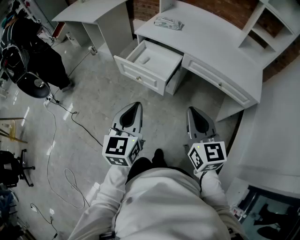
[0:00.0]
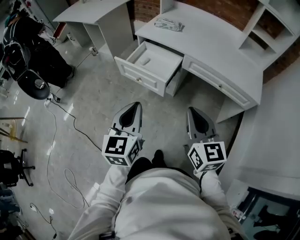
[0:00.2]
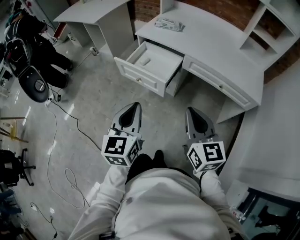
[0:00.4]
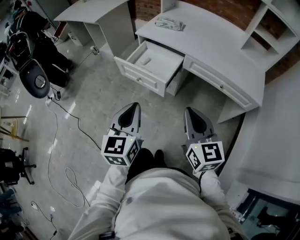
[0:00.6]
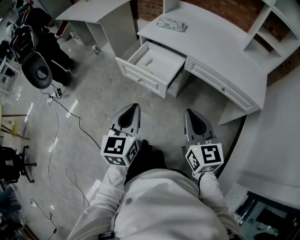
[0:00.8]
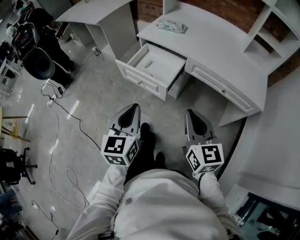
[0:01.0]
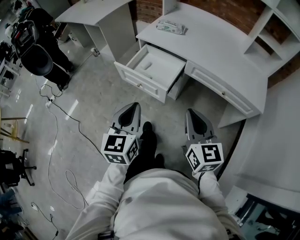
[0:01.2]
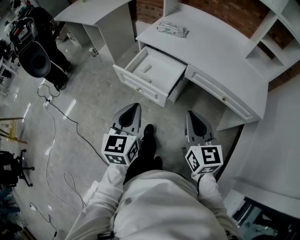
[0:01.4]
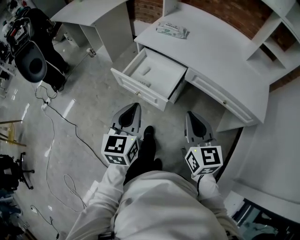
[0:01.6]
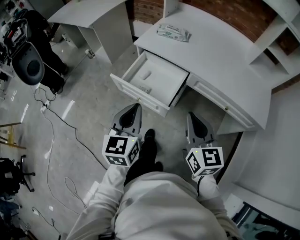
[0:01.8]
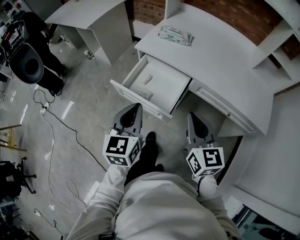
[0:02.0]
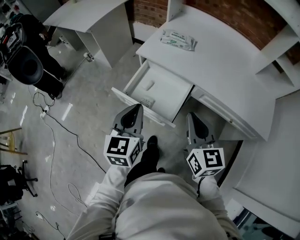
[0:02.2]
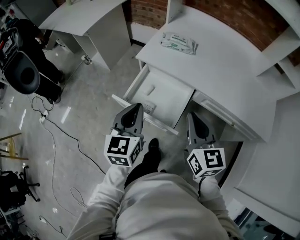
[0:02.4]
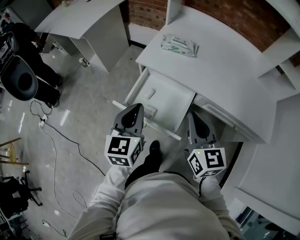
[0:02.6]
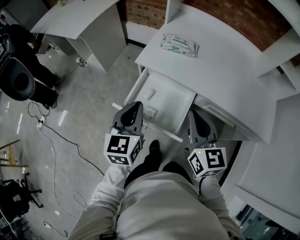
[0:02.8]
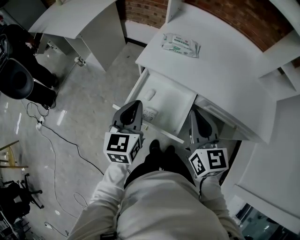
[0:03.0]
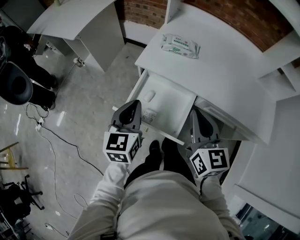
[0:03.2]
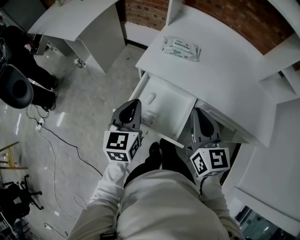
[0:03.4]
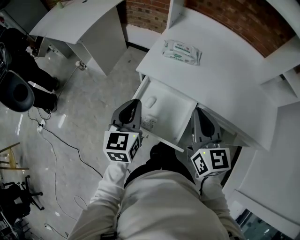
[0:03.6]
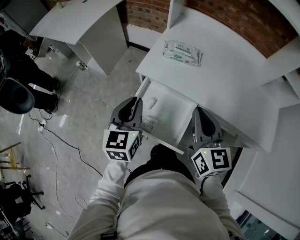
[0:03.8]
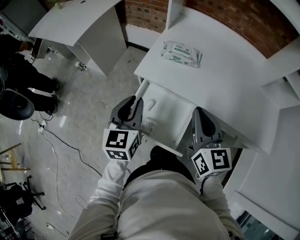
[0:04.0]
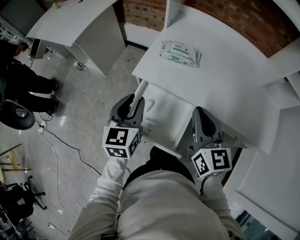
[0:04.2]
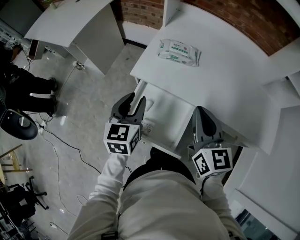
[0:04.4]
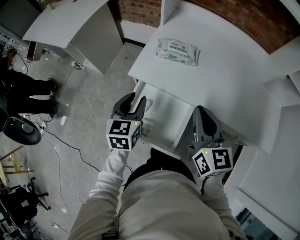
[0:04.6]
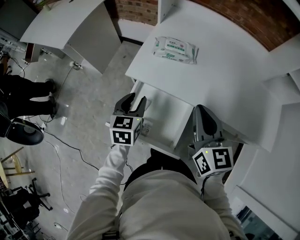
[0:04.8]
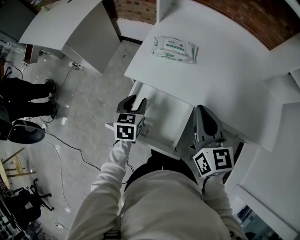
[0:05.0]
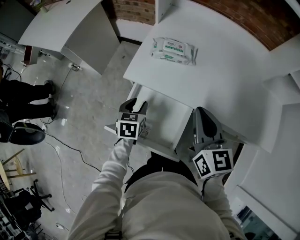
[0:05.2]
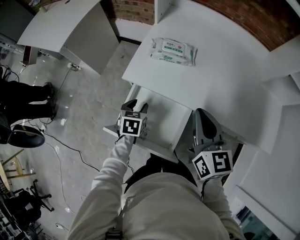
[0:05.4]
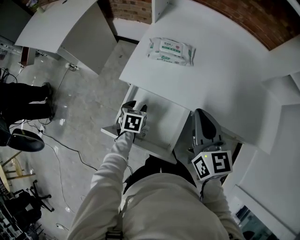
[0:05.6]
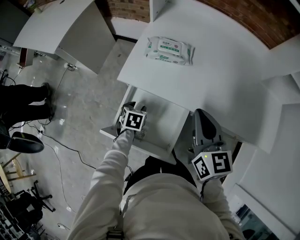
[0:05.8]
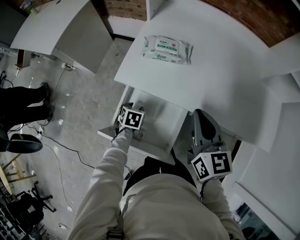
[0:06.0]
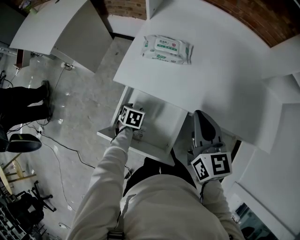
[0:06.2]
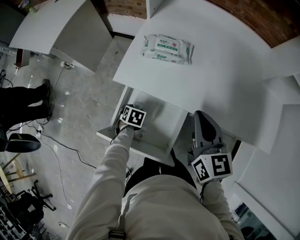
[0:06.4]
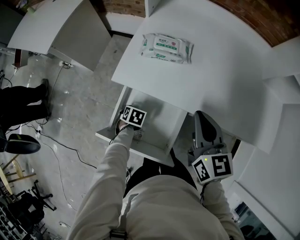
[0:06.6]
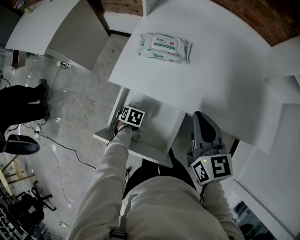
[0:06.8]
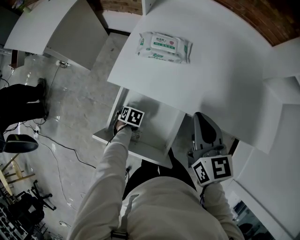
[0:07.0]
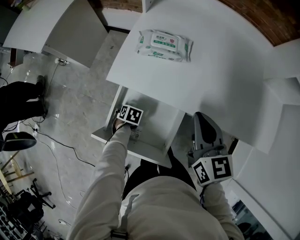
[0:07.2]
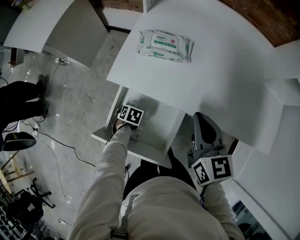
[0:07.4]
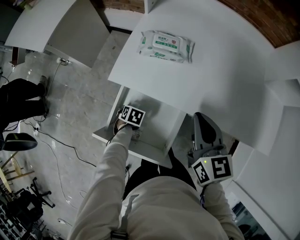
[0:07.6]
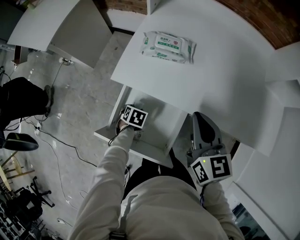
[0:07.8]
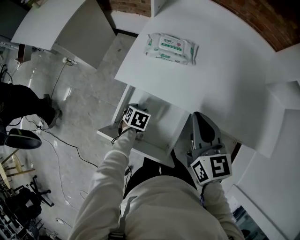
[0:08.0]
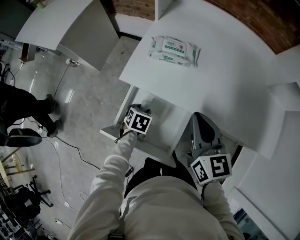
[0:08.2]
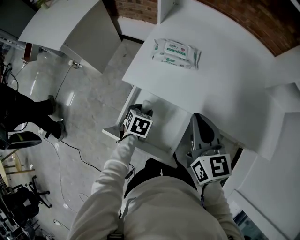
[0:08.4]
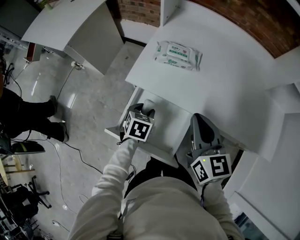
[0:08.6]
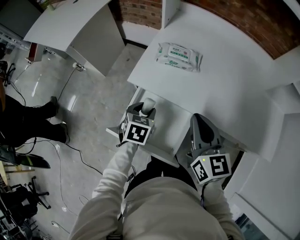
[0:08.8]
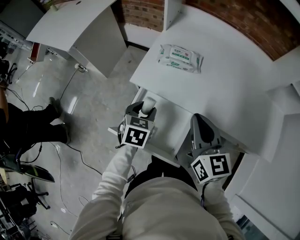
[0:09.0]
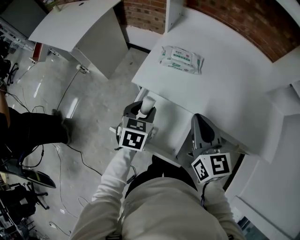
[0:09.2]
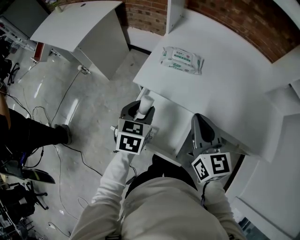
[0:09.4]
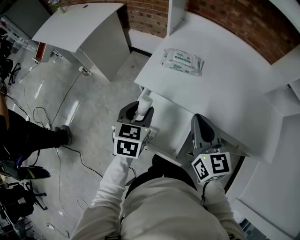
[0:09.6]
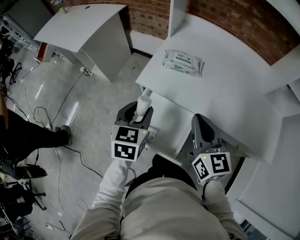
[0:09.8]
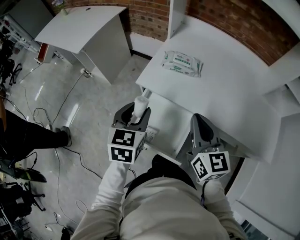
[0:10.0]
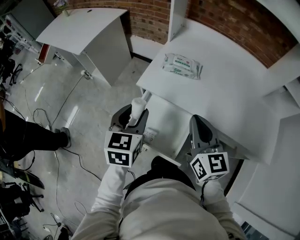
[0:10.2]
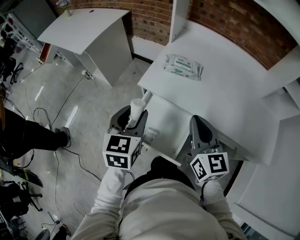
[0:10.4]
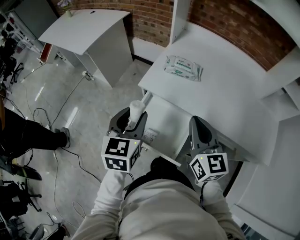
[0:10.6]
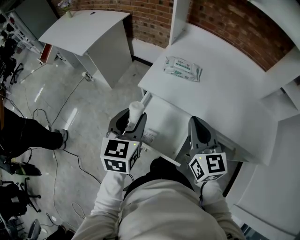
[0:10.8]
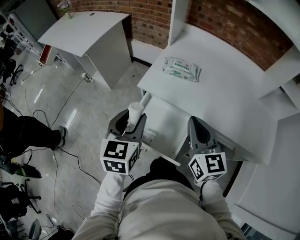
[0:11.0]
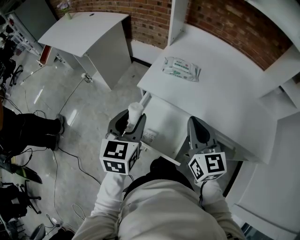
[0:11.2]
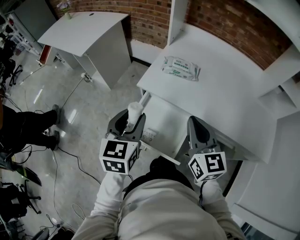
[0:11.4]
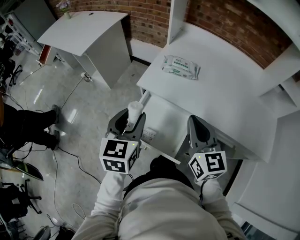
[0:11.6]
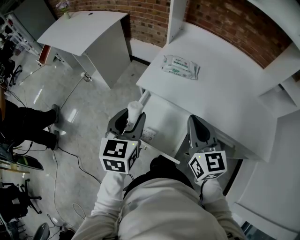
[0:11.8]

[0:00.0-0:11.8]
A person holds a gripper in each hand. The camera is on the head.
0:00.0 to 0:01.4: The grippers both shift forward by roughly 10 cm.
0:01.4 to 0:03.0: Both grippers travel together forward, approximately 30 cm.
0:03.0 to 0:04.4: The grippers both shift forward by approximately 10 cm. The left gripper opens.
0:04.4 to 0:06.0: The left gripper goes approximately 25 cm downward, and tilts its fingers about 40 degrees downward, while the right gripper shifts by about 5 cm.
0:06.0 to 0:07.4: The left gripper moves downward, some 10 cm.
0:07.4 to 0:08.8: The right gripper shifts by approximately 5 cm. The left gripper moves upward, about 25 cm, and angles its fingers upward, by some 30 degrees.
0:08.8 to 0:10.4: The left gripper shifts approximately 20 cm upward, and rotates roughly 30 degrees. The right gripper shifts by approximately 5 cm.
0:10.4 to 0:11.8: There are only small adjustments of the grippers.

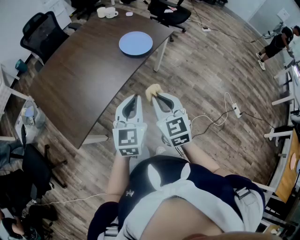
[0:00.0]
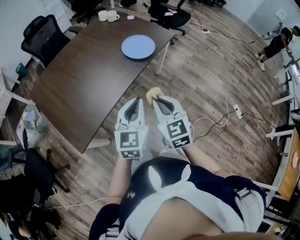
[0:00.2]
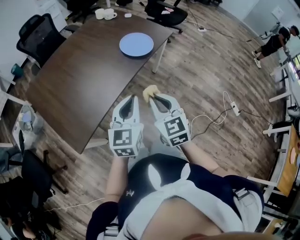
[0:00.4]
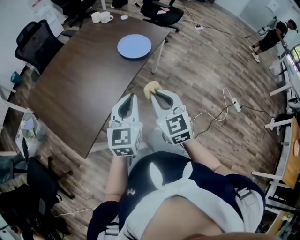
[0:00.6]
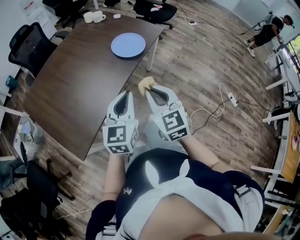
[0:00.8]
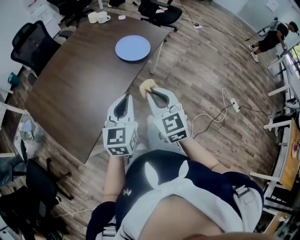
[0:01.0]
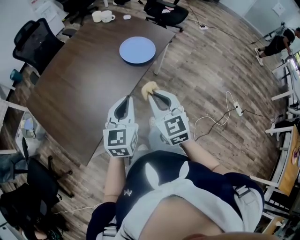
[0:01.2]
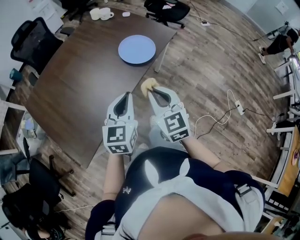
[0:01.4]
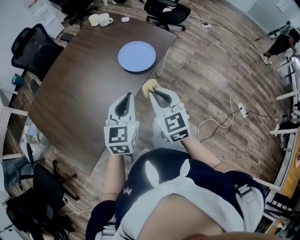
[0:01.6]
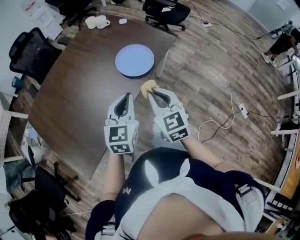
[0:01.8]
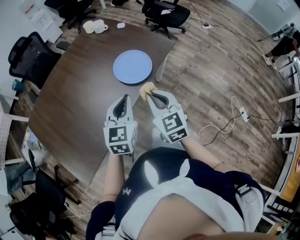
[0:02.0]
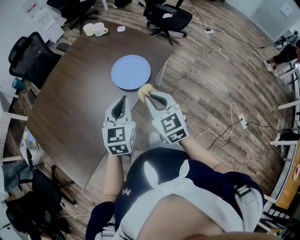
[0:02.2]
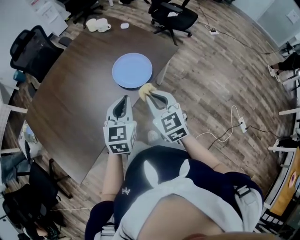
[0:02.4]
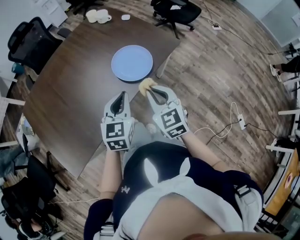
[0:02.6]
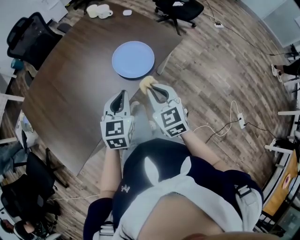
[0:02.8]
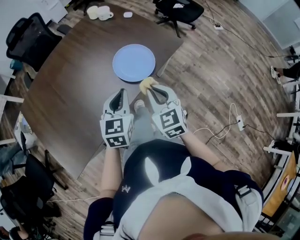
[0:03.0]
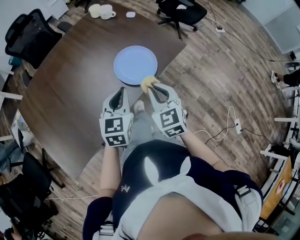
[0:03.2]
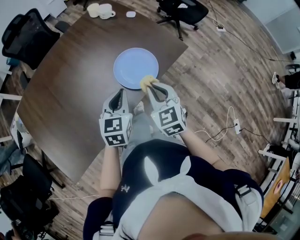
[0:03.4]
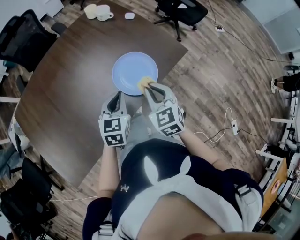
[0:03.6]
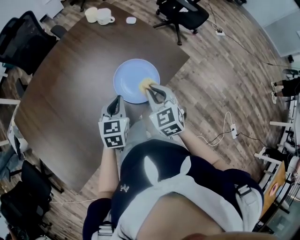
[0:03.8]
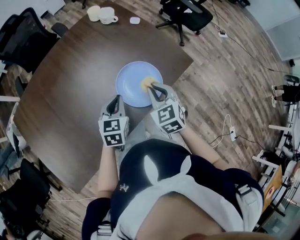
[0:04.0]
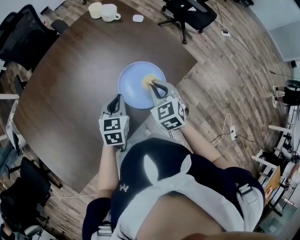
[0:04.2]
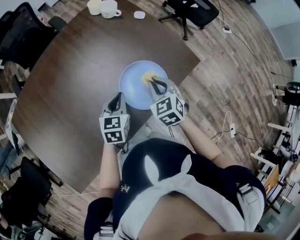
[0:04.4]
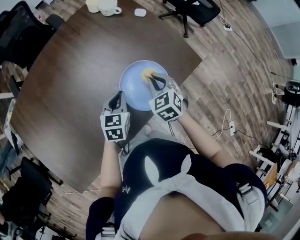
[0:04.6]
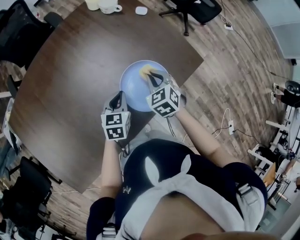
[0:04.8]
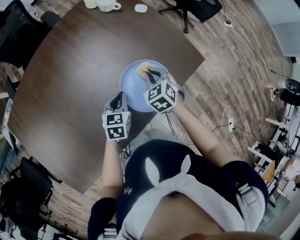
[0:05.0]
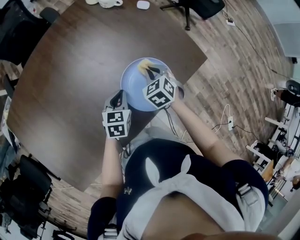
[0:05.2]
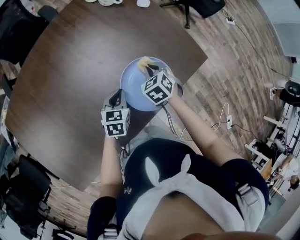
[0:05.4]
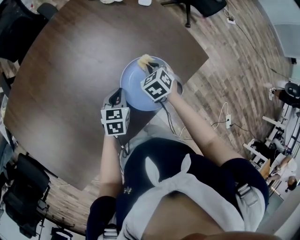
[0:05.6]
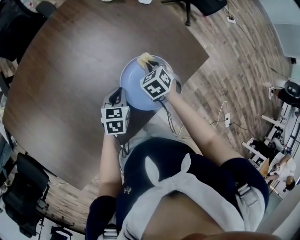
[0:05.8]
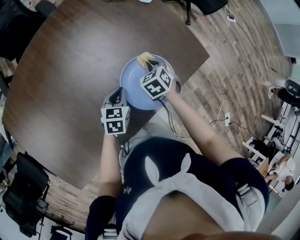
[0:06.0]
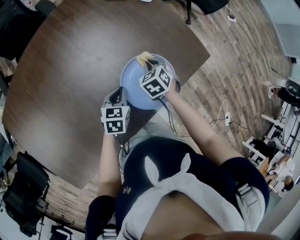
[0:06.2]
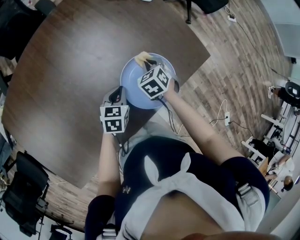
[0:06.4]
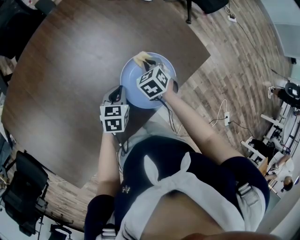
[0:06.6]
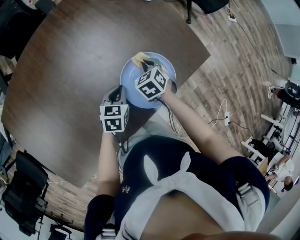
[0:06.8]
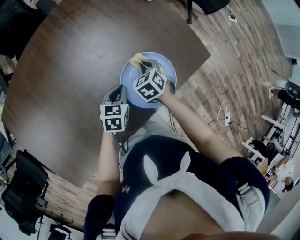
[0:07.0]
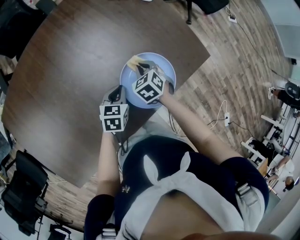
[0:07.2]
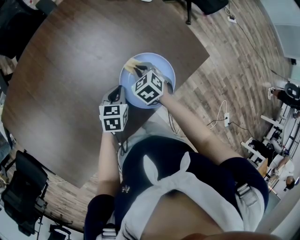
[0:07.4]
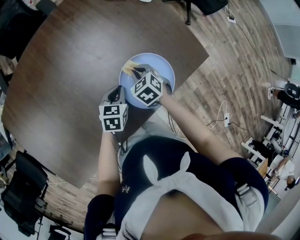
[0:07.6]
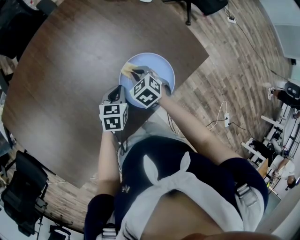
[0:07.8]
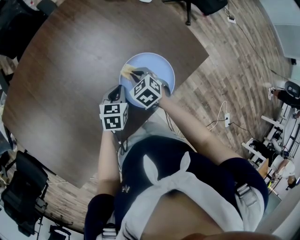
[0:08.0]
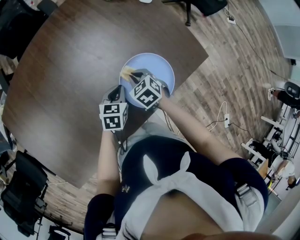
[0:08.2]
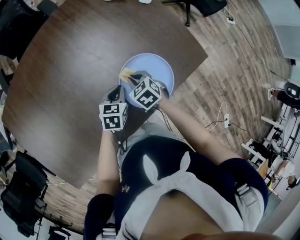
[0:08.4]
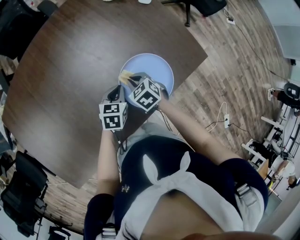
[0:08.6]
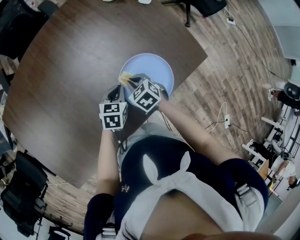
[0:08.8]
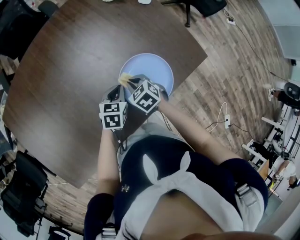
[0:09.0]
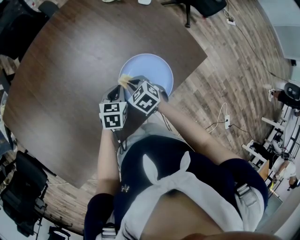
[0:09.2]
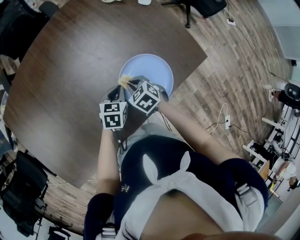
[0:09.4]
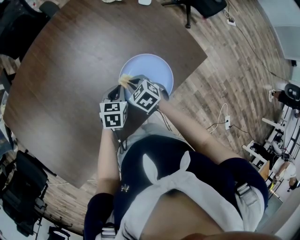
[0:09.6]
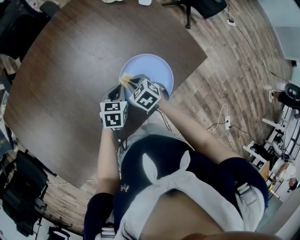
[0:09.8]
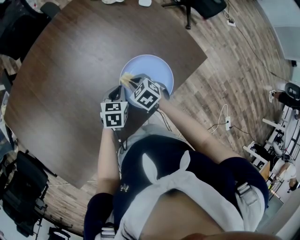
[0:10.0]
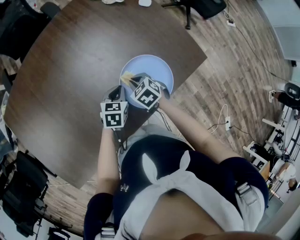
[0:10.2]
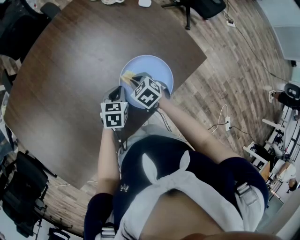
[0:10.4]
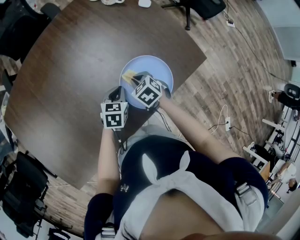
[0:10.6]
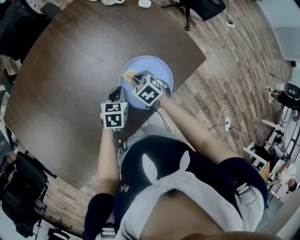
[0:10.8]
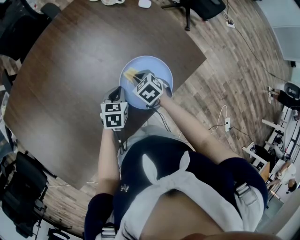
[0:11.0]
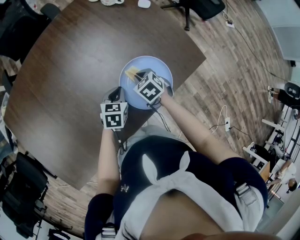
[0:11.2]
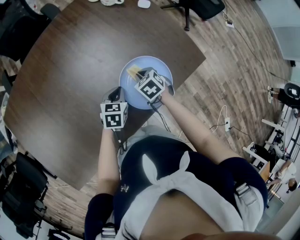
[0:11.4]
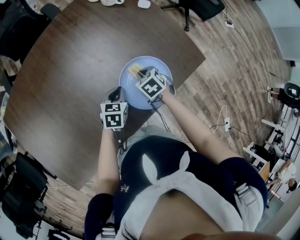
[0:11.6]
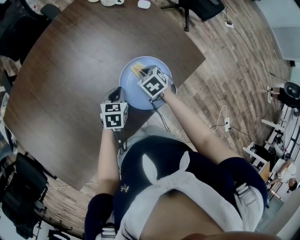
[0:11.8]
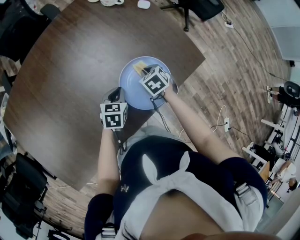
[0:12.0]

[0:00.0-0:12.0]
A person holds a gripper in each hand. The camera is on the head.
0:00.0 to 0:01.6: The grippers both shift forward by about 20 cm.
0:01.6 to 0:03.0: The left gripper goes about 15 cm forward. The right gripper moves forward and to the right, approximately 20 cm.
0:03.0 to 0:04.4: The left gripper shifts approximately 25 cm forward and downward. Meanwhile the right gripper moves forward, approximately 30 cm.
0:04.4 to 0:06.0: The left gripper goes approximately 10 cm downward. Meanwhile the right gripper goes roughly 20 cm downward and forward.
0:06.0 to 0:07.6: The right gripper is displaced to the left by about 5 cm.
0:07.6 to 0:09.0: The right gripper goes about 5 cm backward.
0:09.0 to 0:10.4: The grippers make only small movements.
0:10.4 to 0:12.0: The right gripper shifts some 5 cm to the right.
